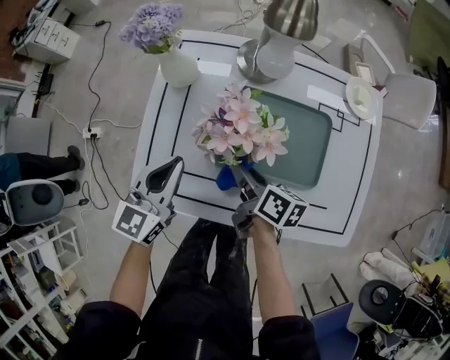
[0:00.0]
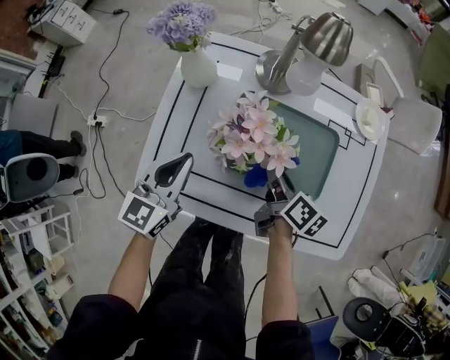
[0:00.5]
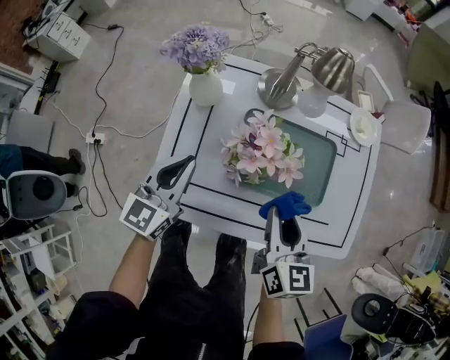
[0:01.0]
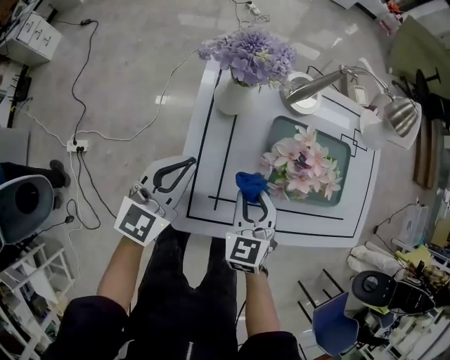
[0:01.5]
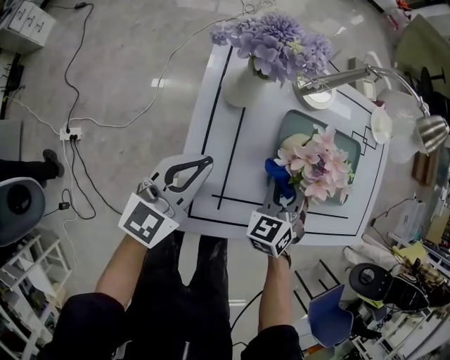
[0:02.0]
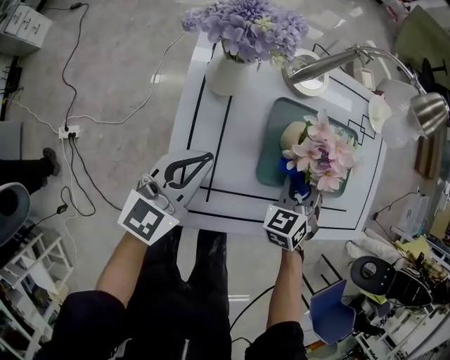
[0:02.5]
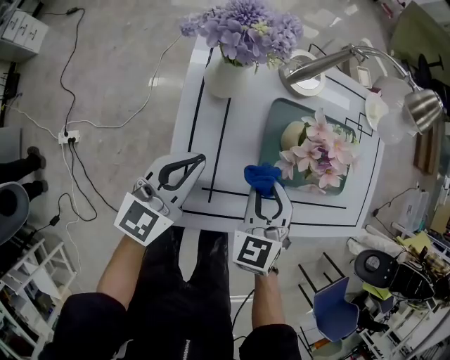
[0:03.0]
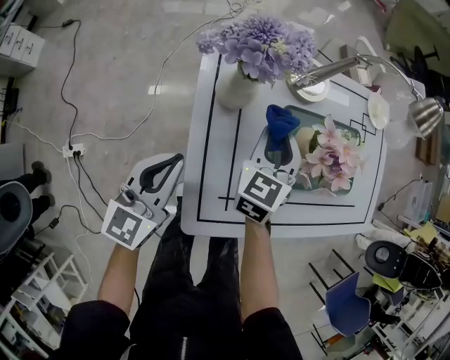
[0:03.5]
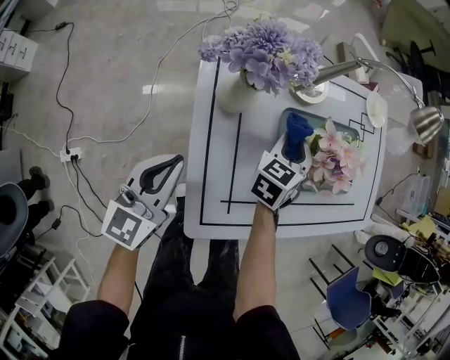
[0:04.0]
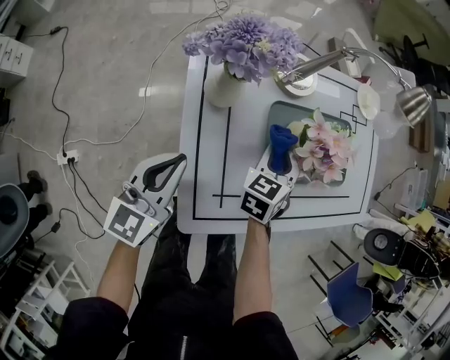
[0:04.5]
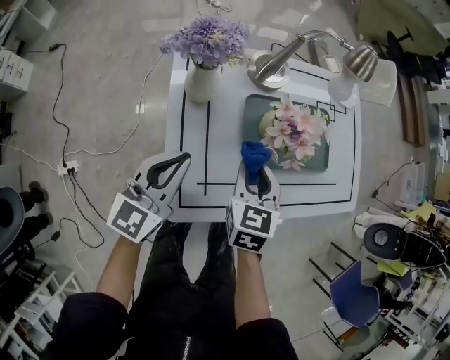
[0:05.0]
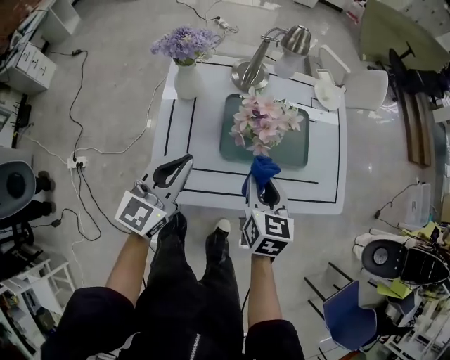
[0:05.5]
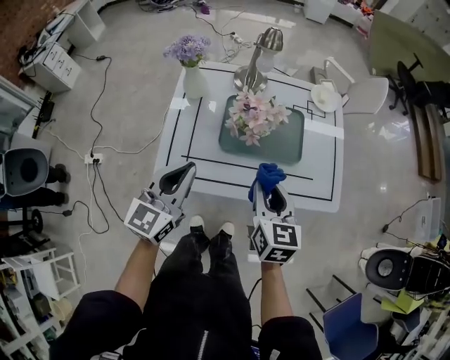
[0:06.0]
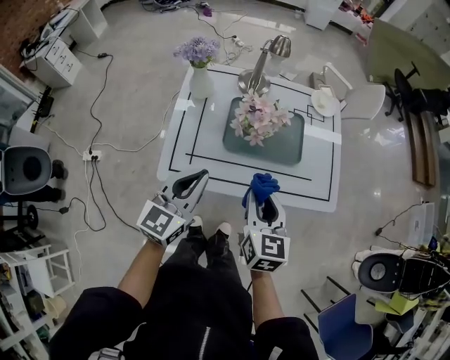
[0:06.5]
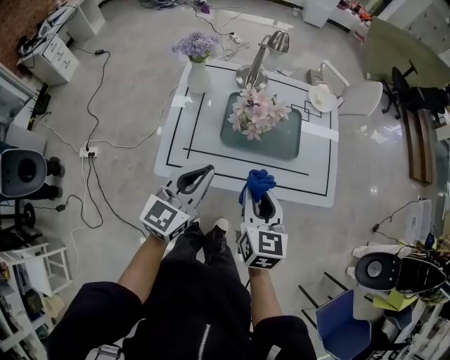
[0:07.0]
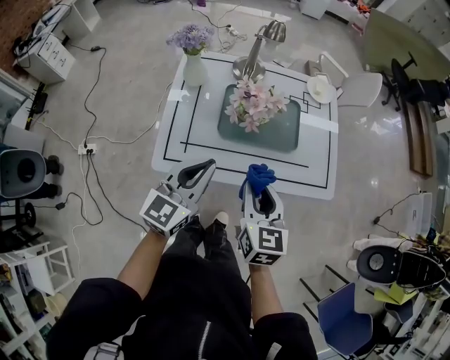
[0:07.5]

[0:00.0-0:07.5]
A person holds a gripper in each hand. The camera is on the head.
0:00.0 to 0:02.0: The left gripper changes place by approximately 15 cm, while the right gripper goes upward and returns, about 15 cm each way, and twists approximately 80 degrees counterclockwise, seen from behind.
0:02.0 to 0:04.0: The right gripper goes left and right, some 15 cm each way, reversing 2 times, and turns by about 40 degrees. The left gripper heads to the left, covering about 5 cm.
0:04.0 to 0:05.5: The left gripper goes about 25 cm to the right and upward; the right gripper travels to the right, backward and upward by roughly 25 cm, and changes its angle by about 40 degrees.
0:05.5 to 0:07.5: The right gripper moves backward and upward, about 15 cm; the left gripper is displaced to the right and backward by roughly 15 cm.

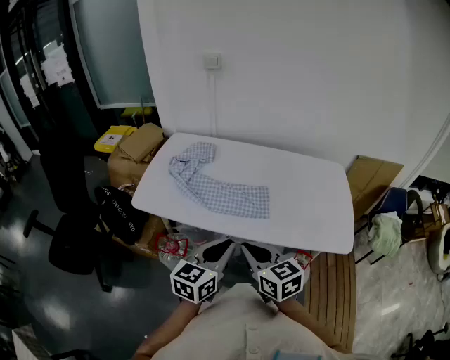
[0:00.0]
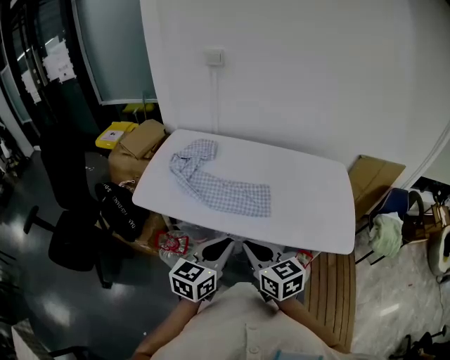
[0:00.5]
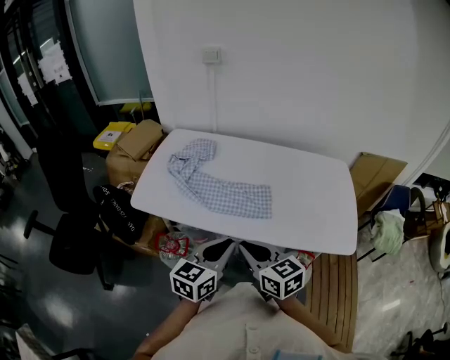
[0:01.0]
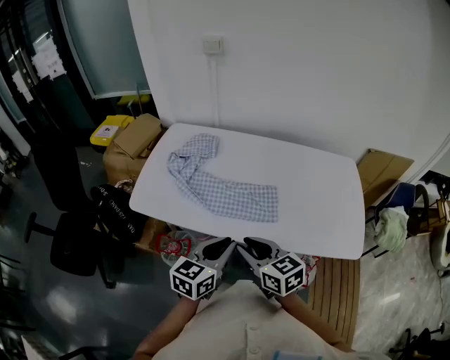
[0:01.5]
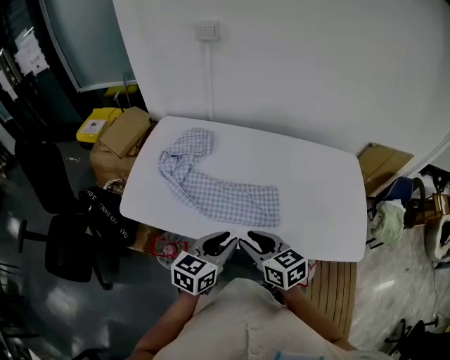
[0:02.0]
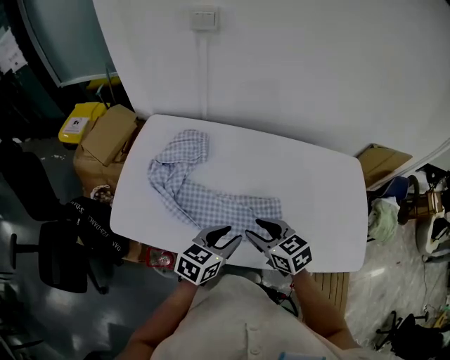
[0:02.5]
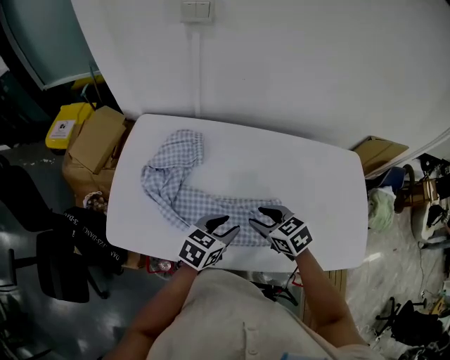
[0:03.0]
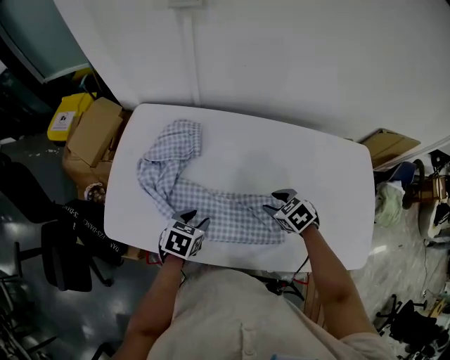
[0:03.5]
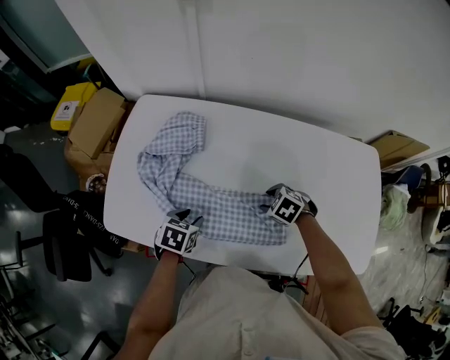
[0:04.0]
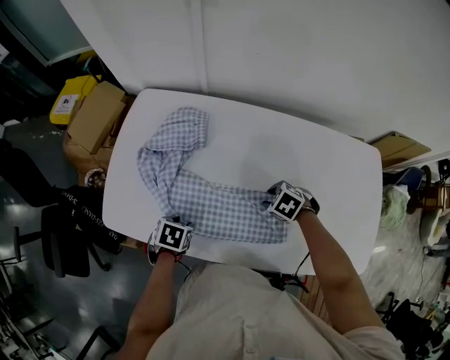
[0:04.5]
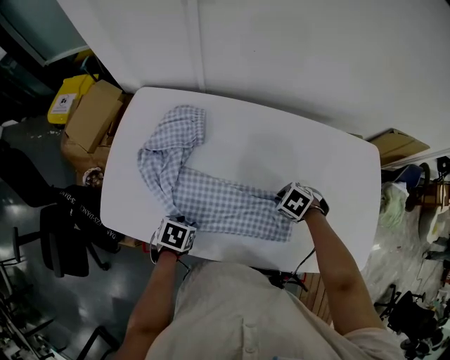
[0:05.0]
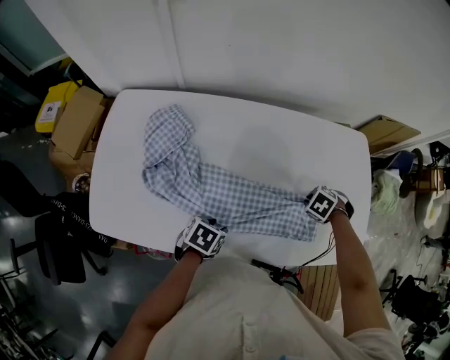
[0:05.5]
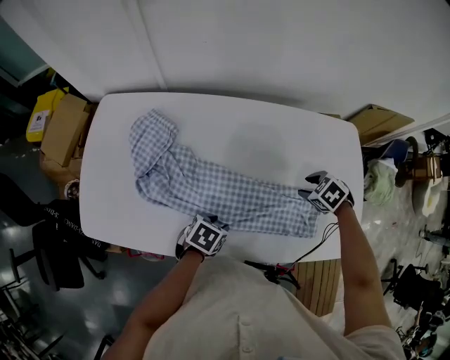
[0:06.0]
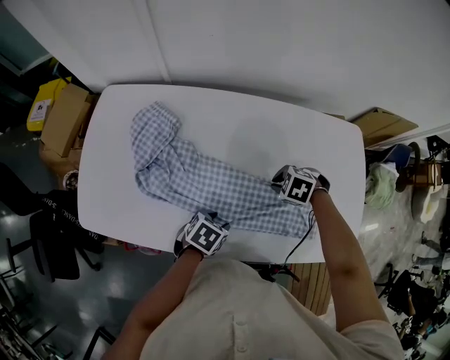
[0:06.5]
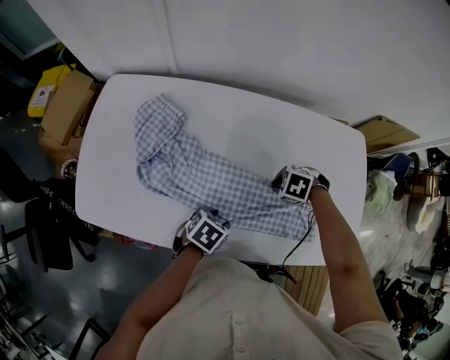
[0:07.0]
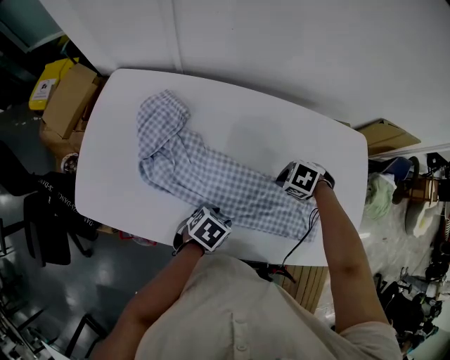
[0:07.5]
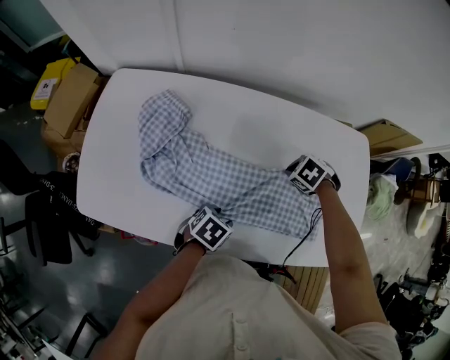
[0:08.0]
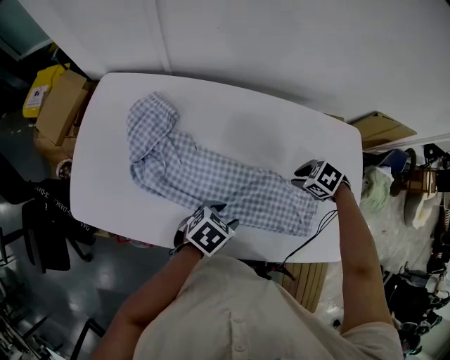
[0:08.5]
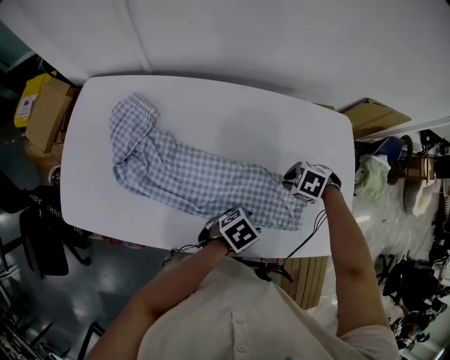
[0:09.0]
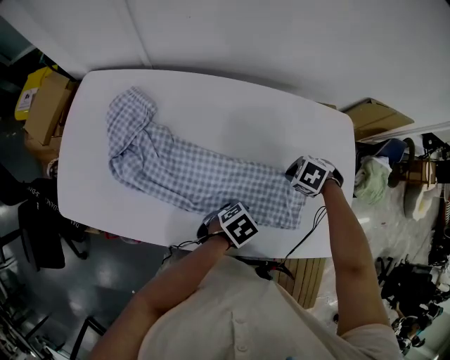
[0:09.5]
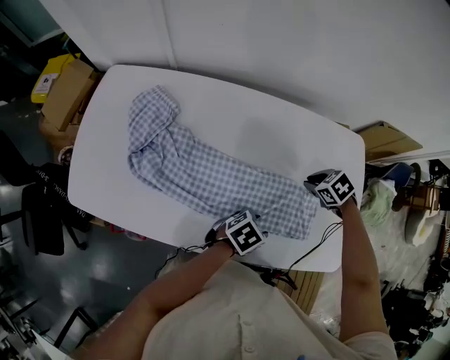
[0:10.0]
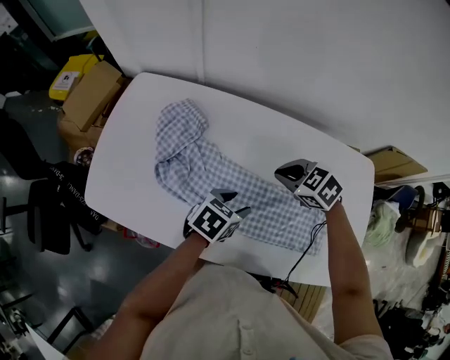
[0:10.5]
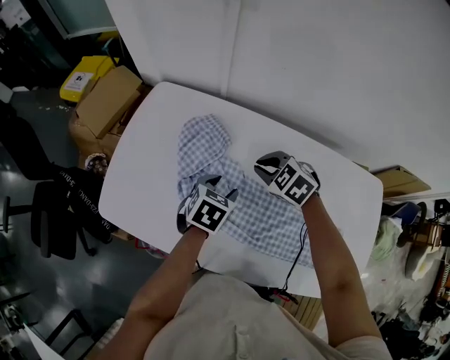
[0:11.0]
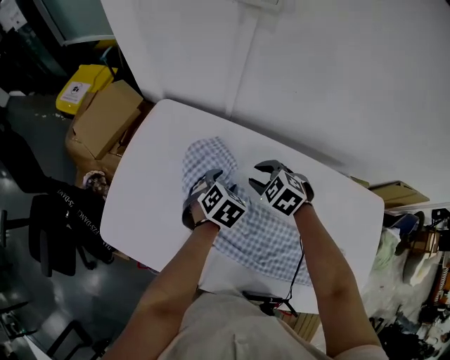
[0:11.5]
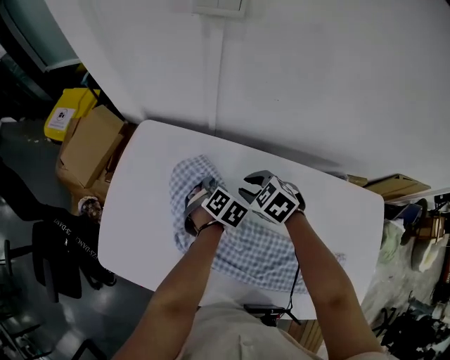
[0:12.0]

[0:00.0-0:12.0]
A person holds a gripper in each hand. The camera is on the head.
0:00.0 to 0:02.0: The two grippers go roughly 15 cm forward and downward. The right gripper opens its fingers.
0:02.0 to 0:04.0: The right gripper travels forward and downward by roughly 30 cm, and tilts its fingers some 50 degrees downward. Meanwhile the left gripper goes some 30 cm downward, forward and to the left, and angles its fingers downward, by roughly 40 degrees.
0:04.0 to 0:06.0: The right gripper moves approximately 25 cm, and closes, then opens again; the left gripper ends up about 20 cm from where it was, and rotates approximately 20 degrees.
0:06.0 to 0:08.0: The right gripper ends up roughly 10 cm from where it was, and closes up.
0:08.0 to 0:10.0: The left gripper ends up approximately 15 cm from where it was, while the right gripper changes place by about 10 cm.
0:10.0 to 0:12.0: The two grippers travel together, approximately 40 cm. The right gripper changes its angle by about 30 degrees. The left gripper swivels some 50 degrees.

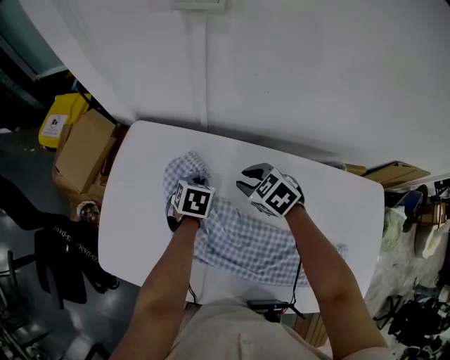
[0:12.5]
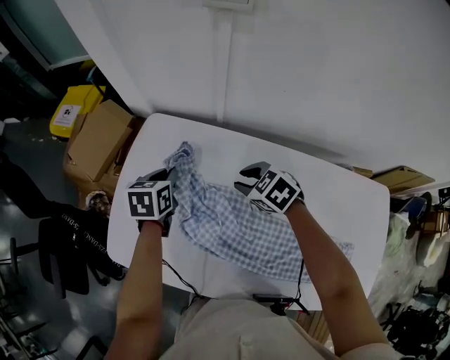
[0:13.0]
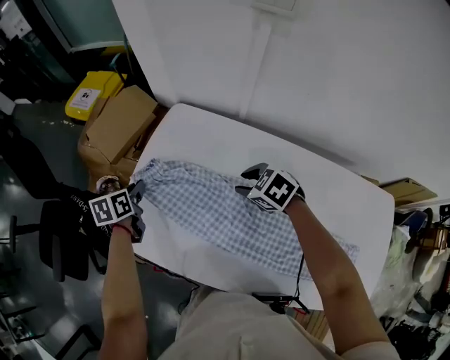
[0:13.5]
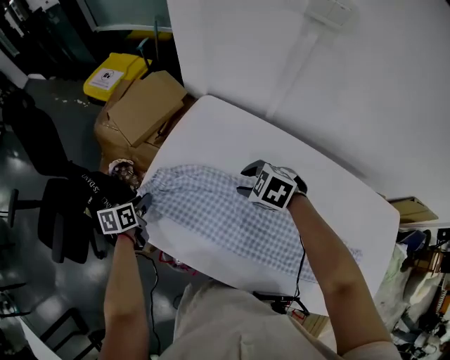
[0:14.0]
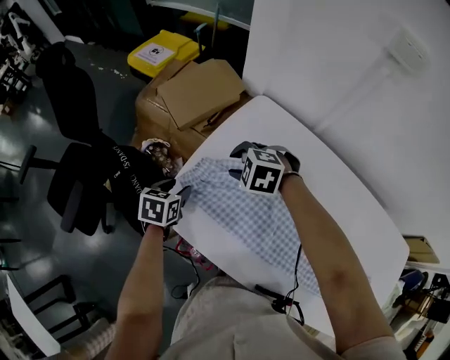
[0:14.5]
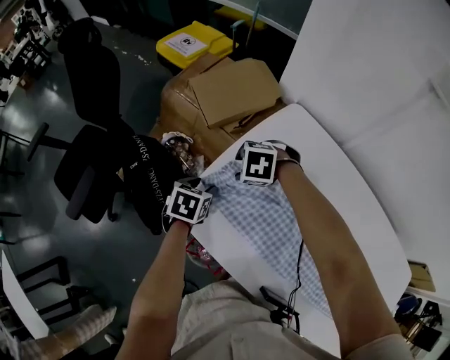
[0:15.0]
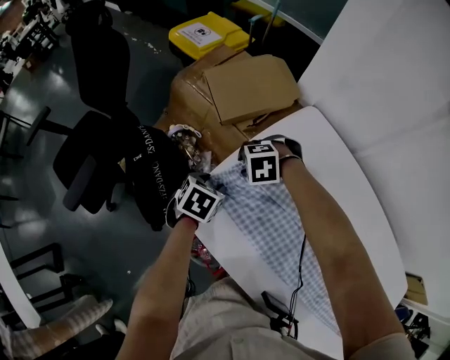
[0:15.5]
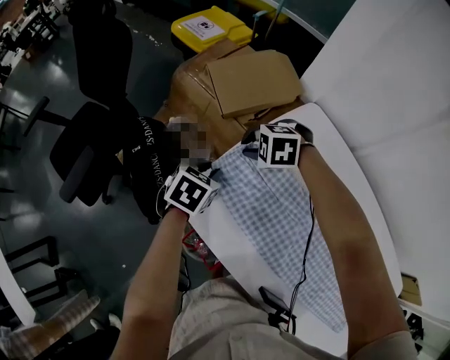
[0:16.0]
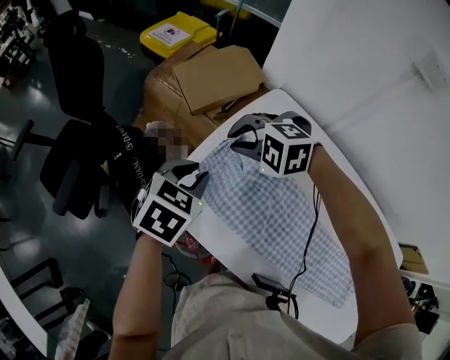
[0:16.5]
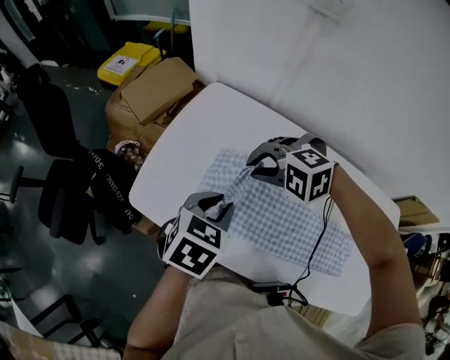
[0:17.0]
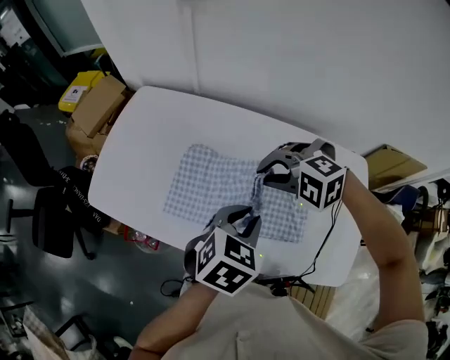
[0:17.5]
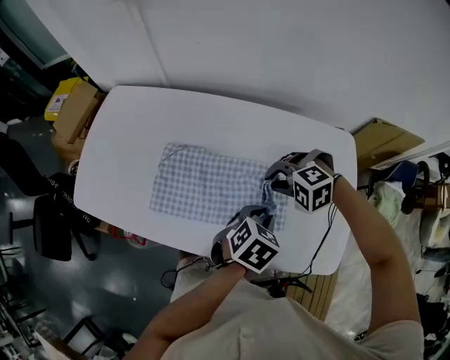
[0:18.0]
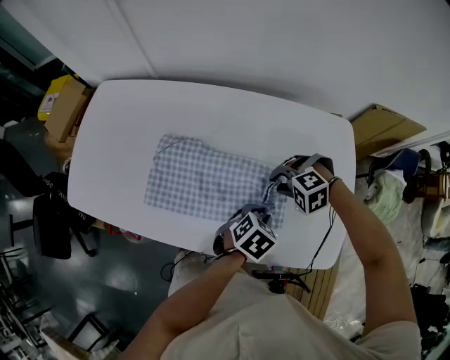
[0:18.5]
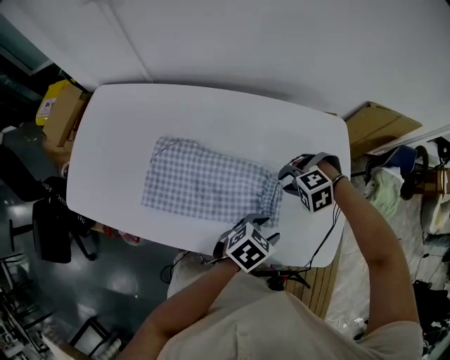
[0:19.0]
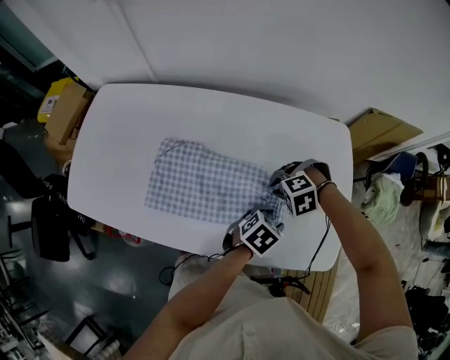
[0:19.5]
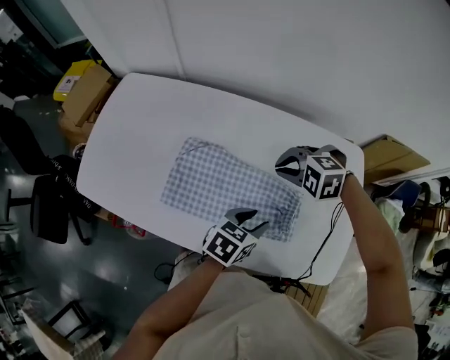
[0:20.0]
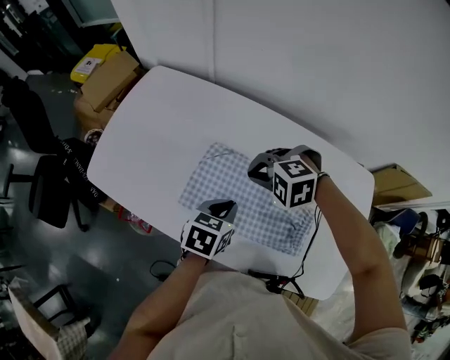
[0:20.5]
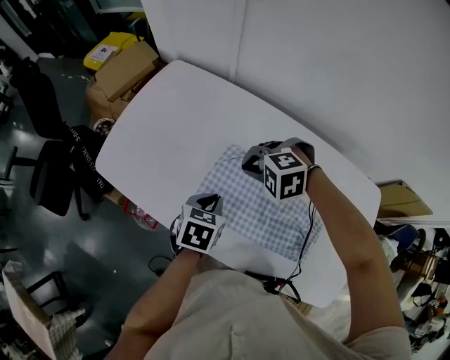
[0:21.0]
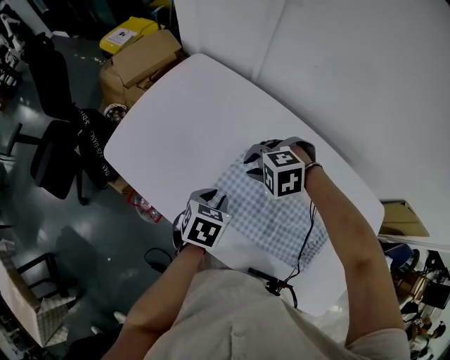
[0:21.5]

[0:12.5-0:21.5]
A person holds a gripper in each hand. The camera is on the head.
0:12.5 to 0:14.5: The right gripper moves roughly 35 cm, and rotates around the line of its fingers by some 50 degrees, counterclockwise from behind, while the left gripper travels upward and back again, some 10 cm each way, changes its angle by approximately 30 degrees, and opens its fingers.
0:14.5 to 0:17.0: The right gripper ends up roughly 25 cm from where it was, and closes, while the left gripper moves about 35 cm, swivels about 30 degrees, and closes.
0:17.0 to 0:19.5: The pair of grippers is taken some 50 cm. The right gripper rotates about 30 degrees; the left gripper changes its angle by approximately 40 degrees, and opens.
0:19.5 to 0:21.5: The left gripper ends up approximately 40 cm from where it was, swivels about 50 degrees, and closes its fingers, while the right gripper ends up roughly 35 cm from where it was, and turns by some 20 degrees.
